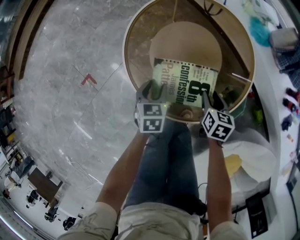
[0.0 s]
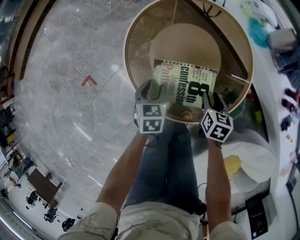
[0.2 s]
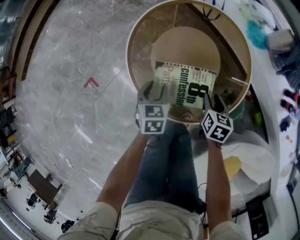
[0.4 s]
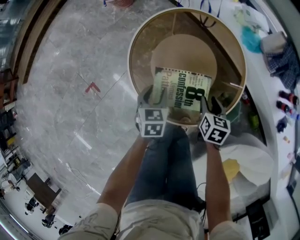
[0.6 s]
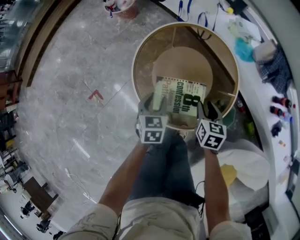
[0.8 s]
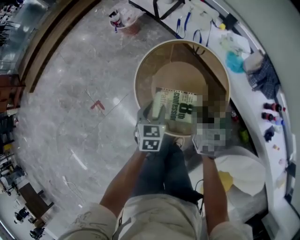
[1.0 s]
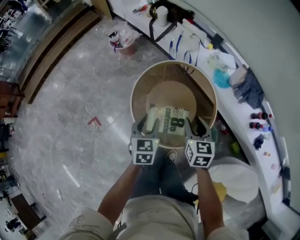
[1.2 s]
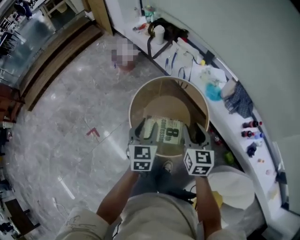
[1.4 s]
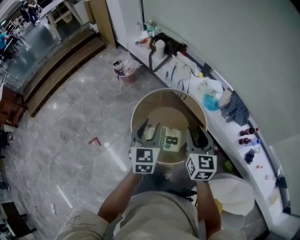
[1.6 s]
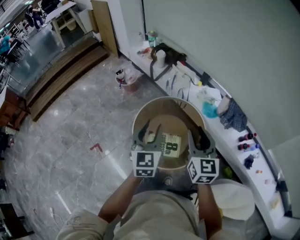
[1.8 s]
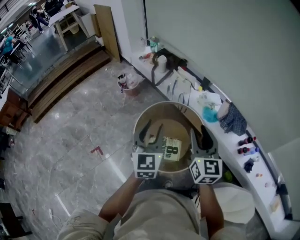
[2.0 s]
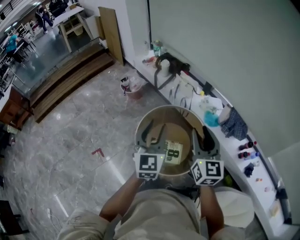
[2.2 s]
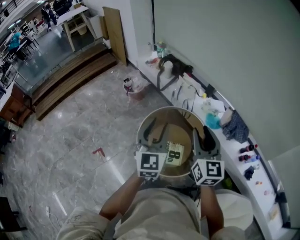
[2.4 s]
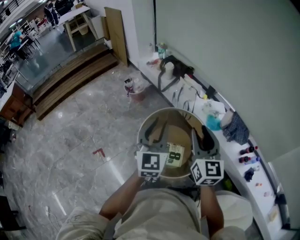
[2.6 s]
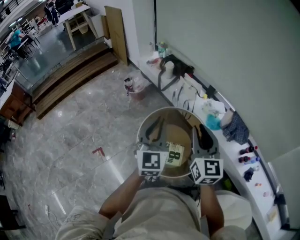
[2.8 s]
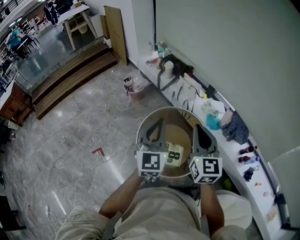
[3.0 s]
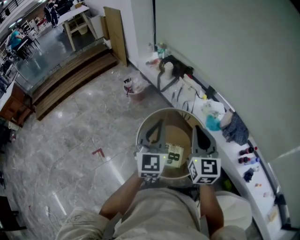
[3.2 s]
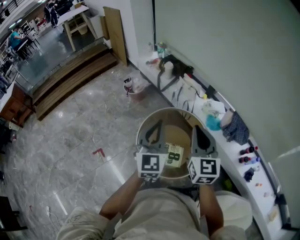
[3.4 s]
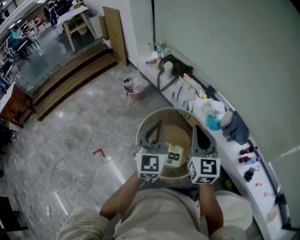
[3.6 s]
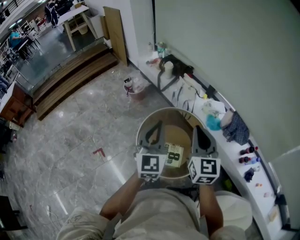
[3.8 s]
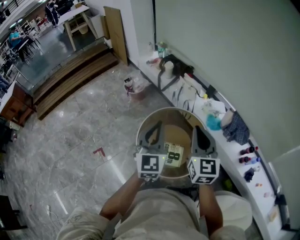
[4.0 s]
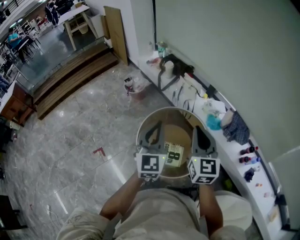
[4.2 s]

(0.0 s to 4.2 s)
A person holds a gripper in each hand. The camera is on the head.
0.0 s - 1.4 s: The grippers both shift upward by about 35 cm. The right gripper points its fingers roughly 30 degrees further upward; the left gripper turns by about 30 degrees.
1.4 s - 2.8 s: The grippers both shift upward by some 20 cm. The right gripper swivels some 20 degrees; the left gripper changes its angle by approximately 30 degrees, and closes.
2.8 s - 4.2 s: The right gripper closes up.

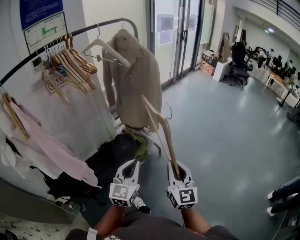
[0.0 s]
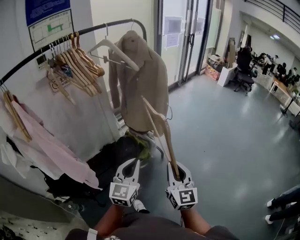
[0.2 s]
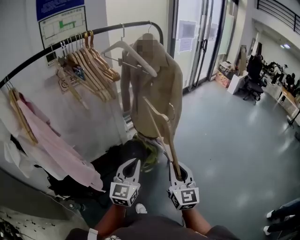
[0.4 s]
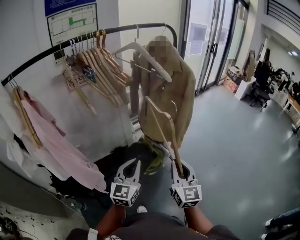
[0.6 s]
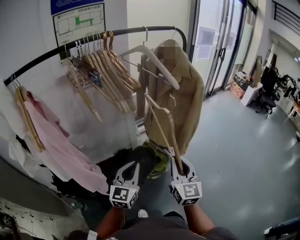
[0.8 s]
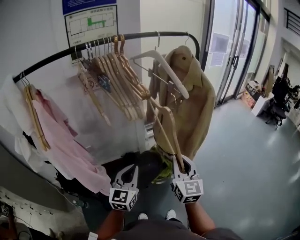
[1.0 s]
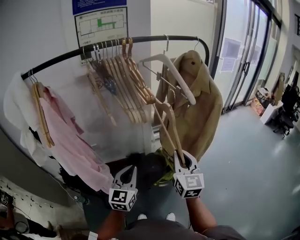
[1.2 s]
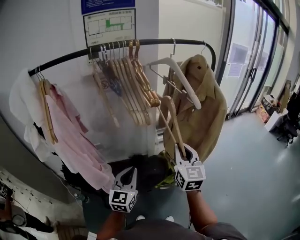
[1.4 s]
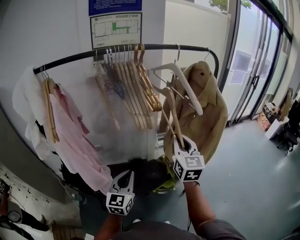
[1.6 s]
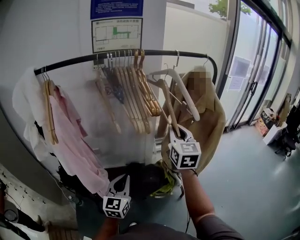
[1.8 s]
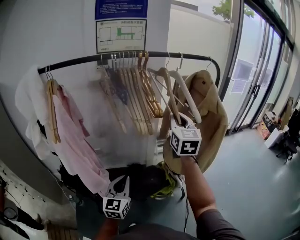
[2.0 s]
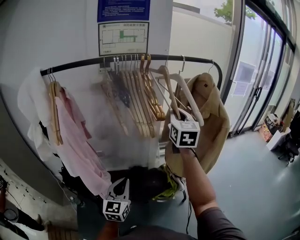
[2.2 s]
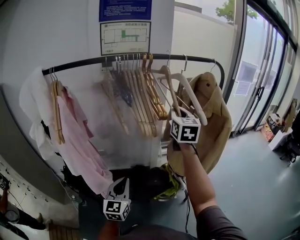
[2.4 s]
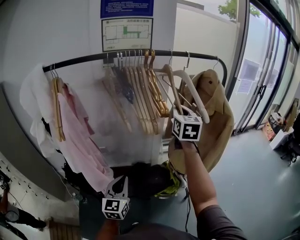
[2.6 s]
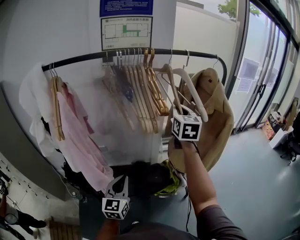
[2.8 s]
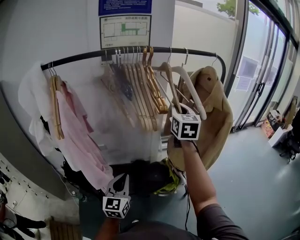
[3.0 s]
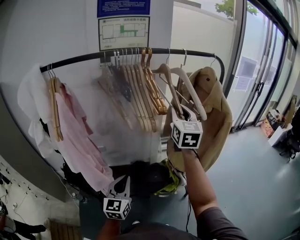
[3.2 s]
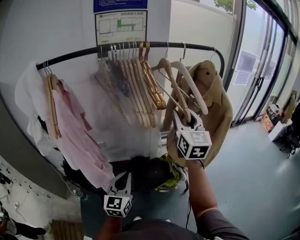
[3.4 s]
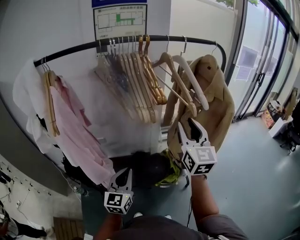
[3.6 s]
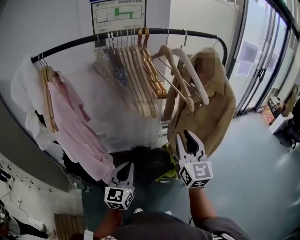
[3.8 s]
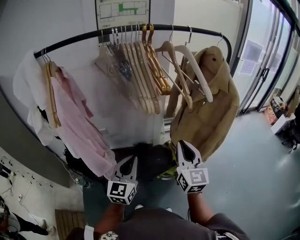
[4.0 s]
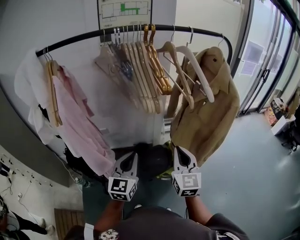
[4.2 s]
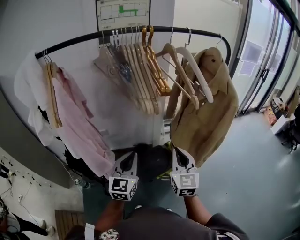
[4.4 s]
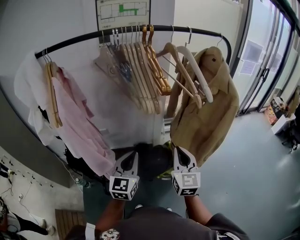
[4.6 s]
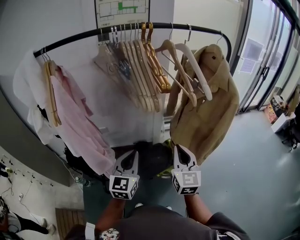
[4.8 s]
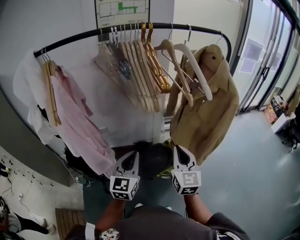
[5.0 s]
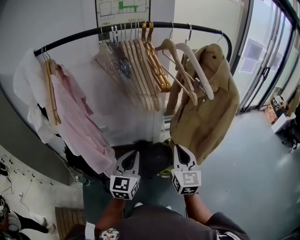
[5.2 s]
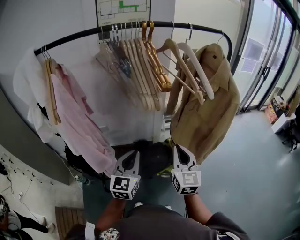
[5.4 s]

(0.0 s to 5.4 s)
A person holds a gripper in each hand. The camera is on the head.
0.0 s - 1.4 s: The left gripper shifts by roughly 20 cm, and swivels roughly 30 degrees, while the right gripper shifts by about 35 cm, and rotates approximately 20 degrees.
1.4 s - 2.8 s: The left gripper moves to the left, approximately 5 cm. The right gripper travels forward and upward by approximately 20 cm.
2.8 s - 4.0 s: The right gripper shifts about 25 cm backward and downward, and opens, then closes once more.
4.0 s - 5.4 s: The grippers make only small movements.

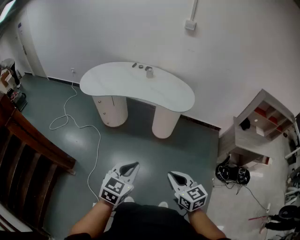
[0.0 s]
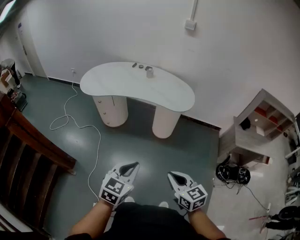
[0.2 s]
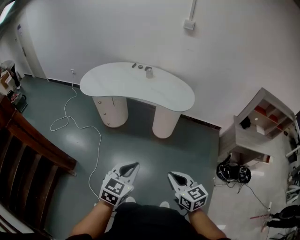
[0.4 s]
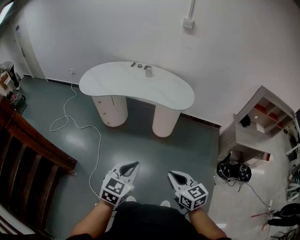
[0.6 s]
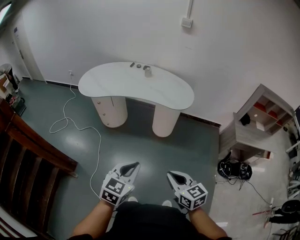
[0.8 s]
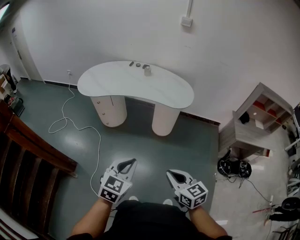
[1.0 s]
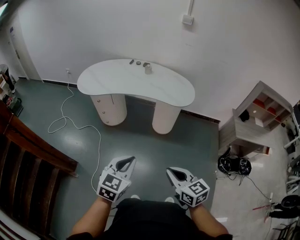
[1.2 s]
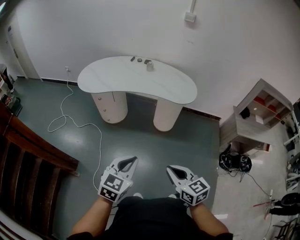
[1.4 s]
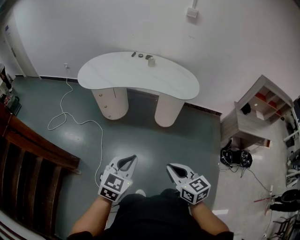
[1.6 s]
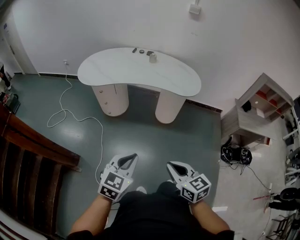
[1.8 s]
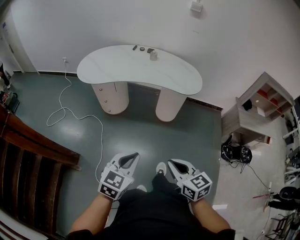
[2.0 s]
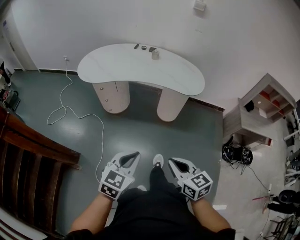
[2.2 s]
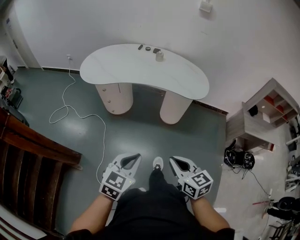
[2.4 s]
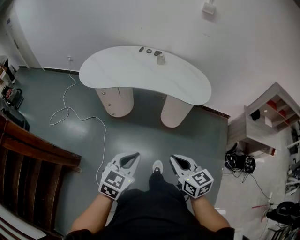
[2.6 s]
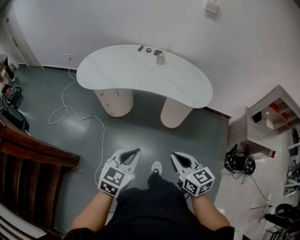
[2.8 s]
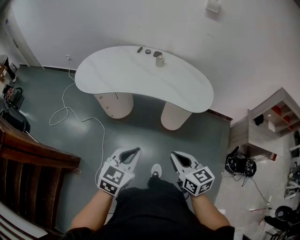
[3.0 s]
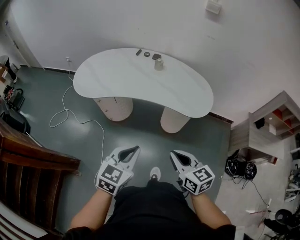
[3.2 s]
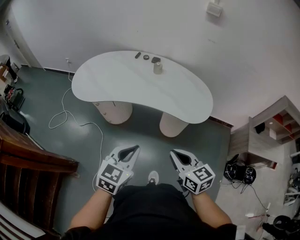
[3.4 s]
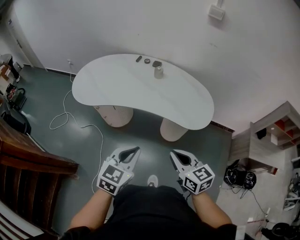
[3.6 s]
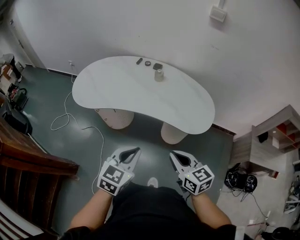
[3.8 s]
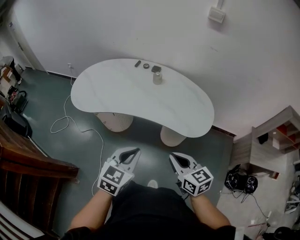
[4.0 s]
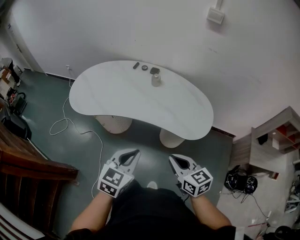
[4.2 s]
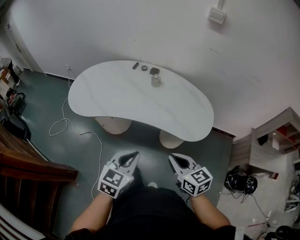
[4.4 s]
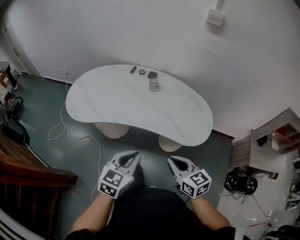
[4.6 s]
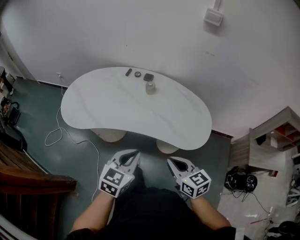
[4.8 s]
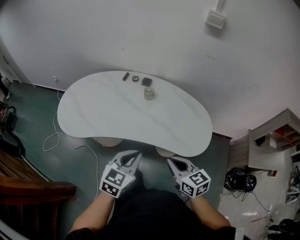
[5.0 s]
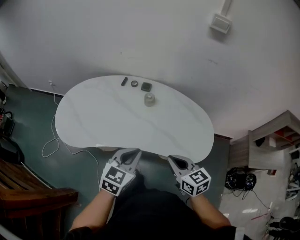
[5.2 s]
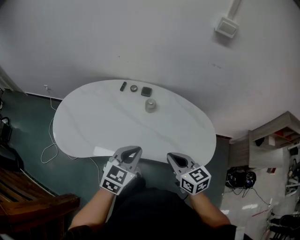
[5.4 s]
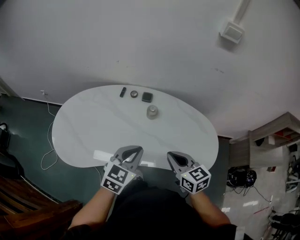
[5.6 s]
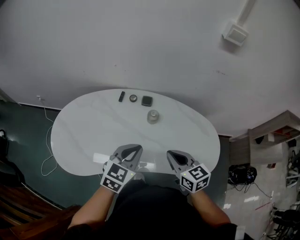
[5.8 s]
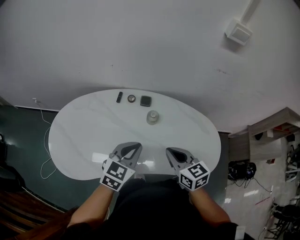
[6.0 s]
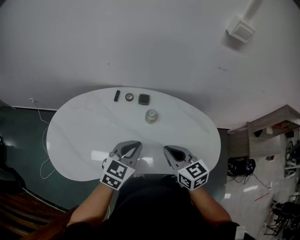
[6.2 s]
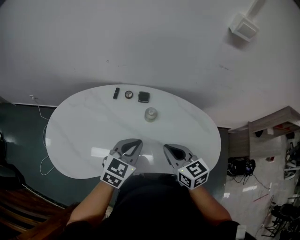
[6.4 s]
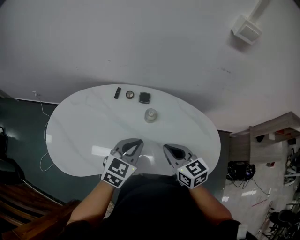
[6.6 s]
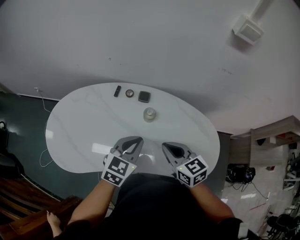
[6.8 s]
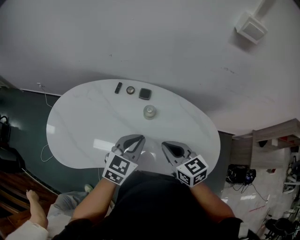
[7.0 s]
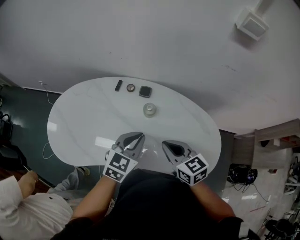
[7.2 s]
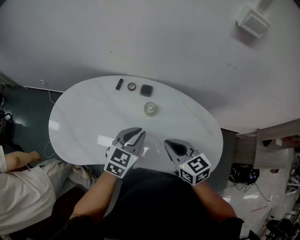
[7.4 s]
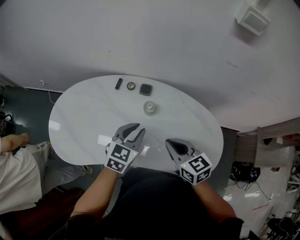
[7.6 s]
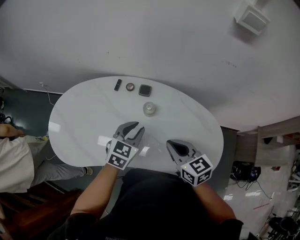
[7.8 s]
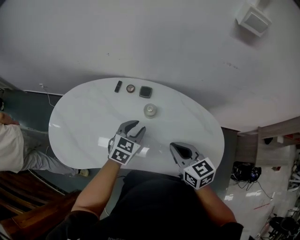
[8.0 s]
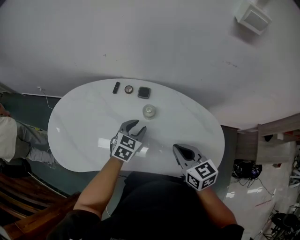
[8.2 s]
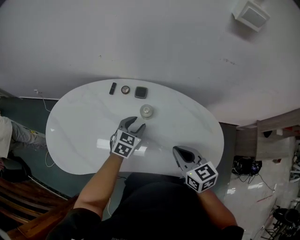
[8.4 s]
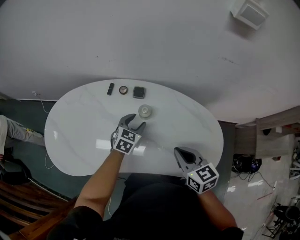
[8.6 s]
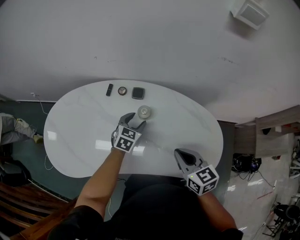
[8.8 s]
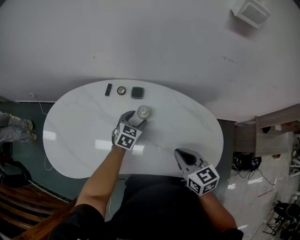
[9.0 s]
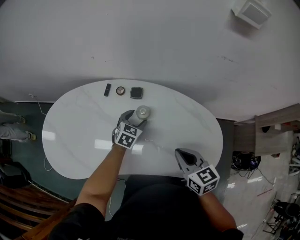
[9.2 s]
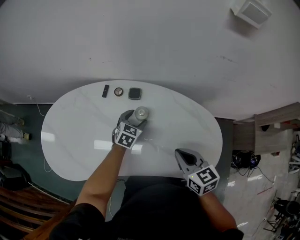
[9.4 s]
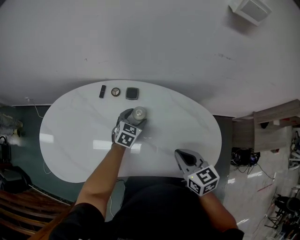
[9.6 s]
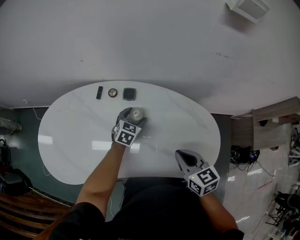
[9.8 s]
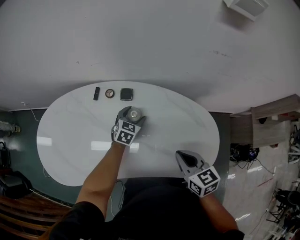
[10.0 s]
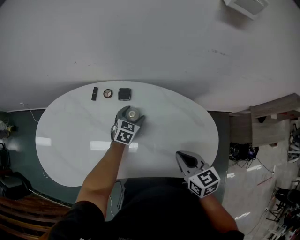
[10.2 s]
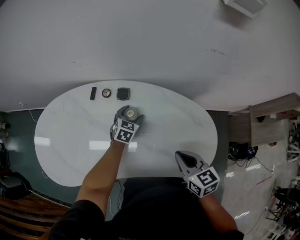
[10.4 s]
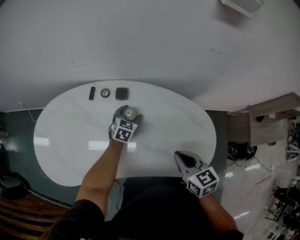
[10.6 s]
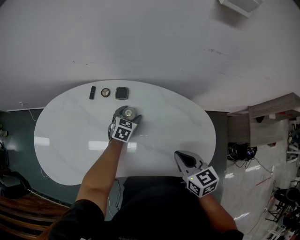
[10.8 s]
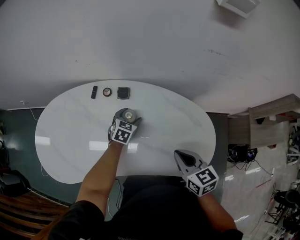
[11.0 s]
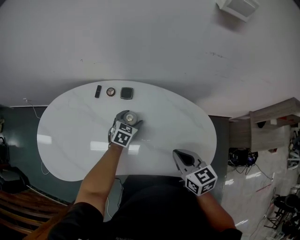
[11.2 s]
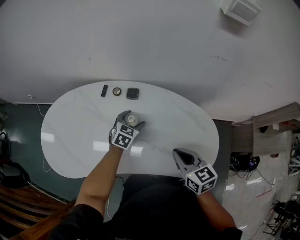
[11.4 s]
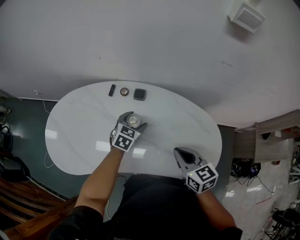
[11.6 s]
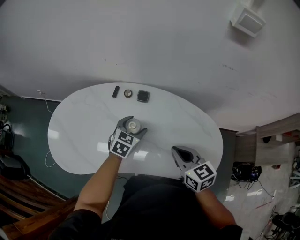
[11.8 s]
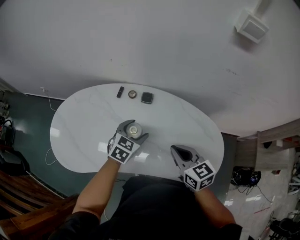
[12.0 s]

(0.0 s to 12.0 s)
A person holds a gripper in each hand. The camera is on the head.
0.0 s - 1.6 s: Both grippers travel together to the left, roughly 10 cm.
1.6 s - 3.0 s: Both grippers travel together forward, some 20 cm.
3.0 s - 4.4 s: The two grippers go about 15 cm forward.
4.4 s - 6.0 s: The two grippers go roughly 35 cm forward.
6.0 s - 7.6 s: The left gripper is displaced forward and to the right by about 10 cm. Meanwhile the right gripper changes place by some 5 cm.
7.6 s - 9.0 s: The right gripper moves some 5 cm; the left gripper heads downward and forward, covering some 15 cm, and opens.
9.0 s - 10.4 s: The left gripper shifts by approximately 10 cm.
10.4 s - 12.0 s: The left gripper goes approximately 20 cm upward, backward and to the left, while the right gripper moves to the left, roughly 5 cm.

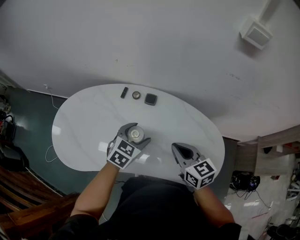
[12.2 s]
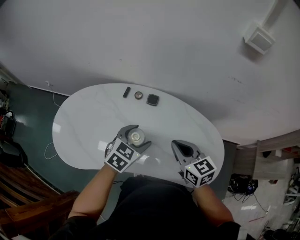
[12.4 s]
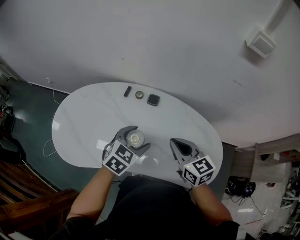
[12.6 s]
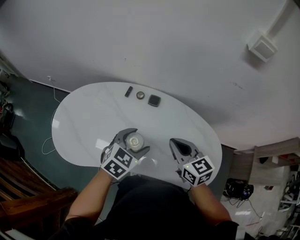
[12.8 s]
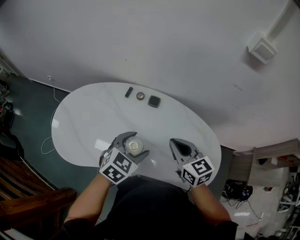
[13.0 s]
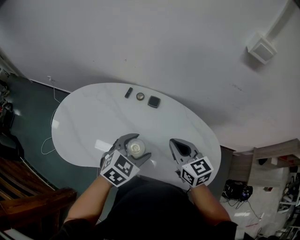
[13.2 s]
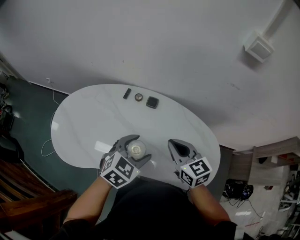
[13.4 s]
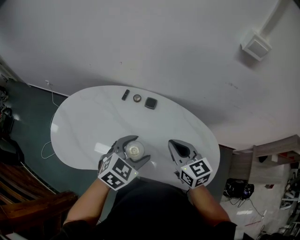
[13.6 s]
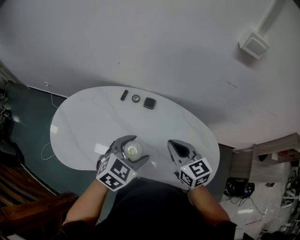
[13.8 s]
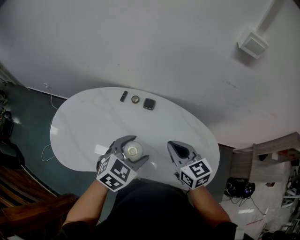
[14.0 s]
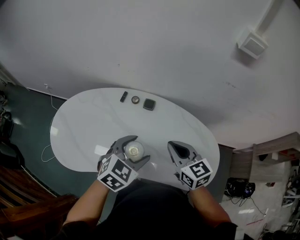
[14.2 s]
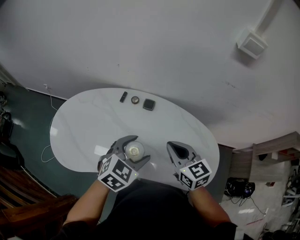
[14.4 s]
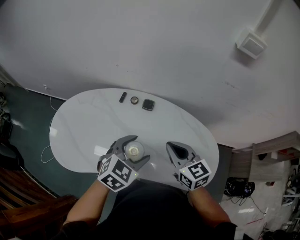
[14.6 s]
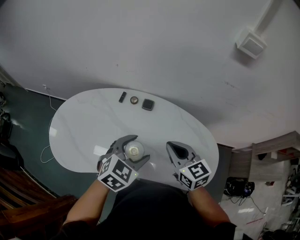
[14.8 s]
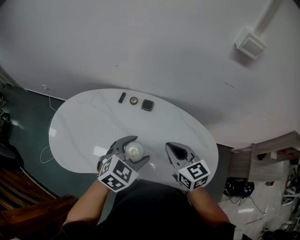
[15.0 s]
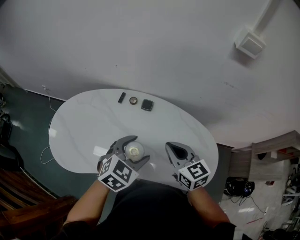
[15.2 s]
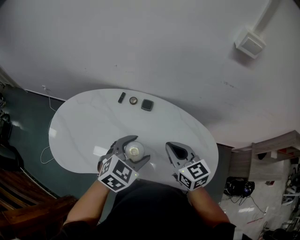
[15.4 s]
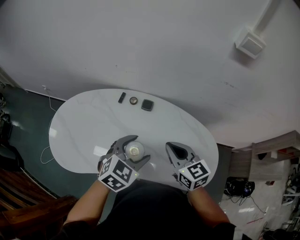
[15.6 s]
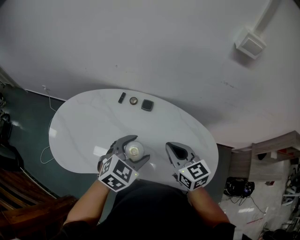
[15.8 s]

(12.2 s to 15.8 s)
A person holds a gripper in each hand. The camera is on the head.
12.2 s - 14.0 s: The left gripper moves upward and backward, about 10 cm.
14.0 s - 15.8 s: Neither gripper changes place.
